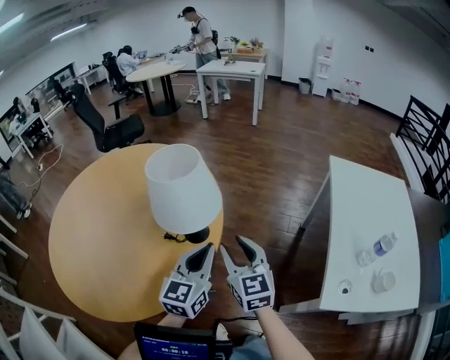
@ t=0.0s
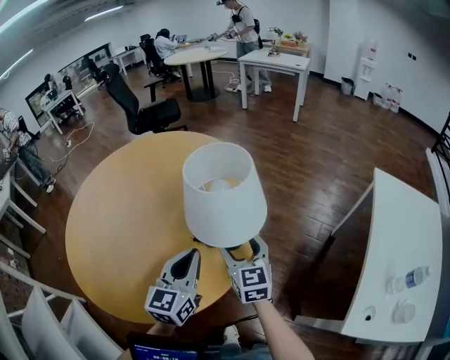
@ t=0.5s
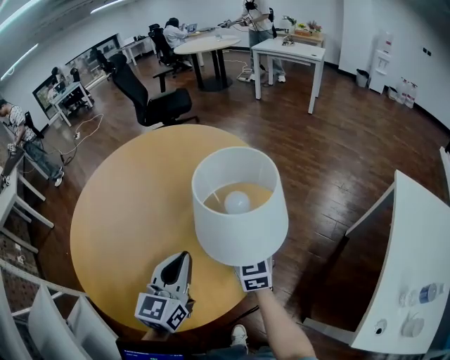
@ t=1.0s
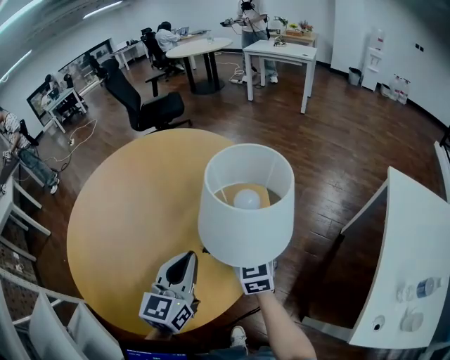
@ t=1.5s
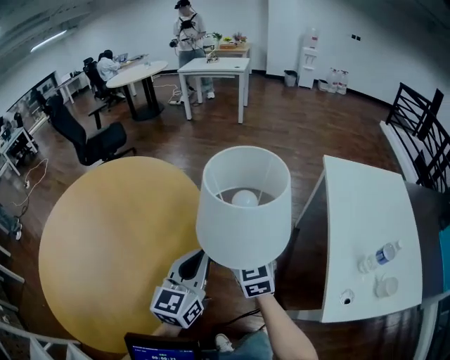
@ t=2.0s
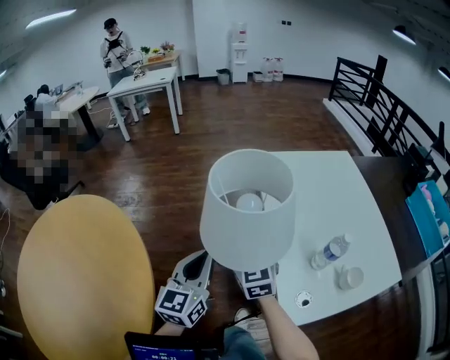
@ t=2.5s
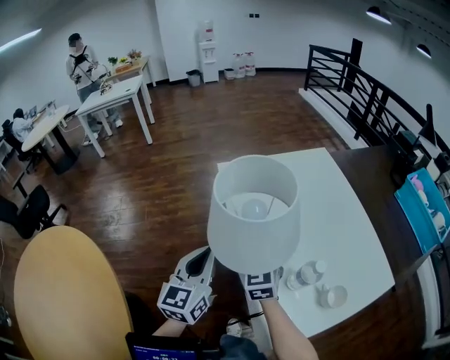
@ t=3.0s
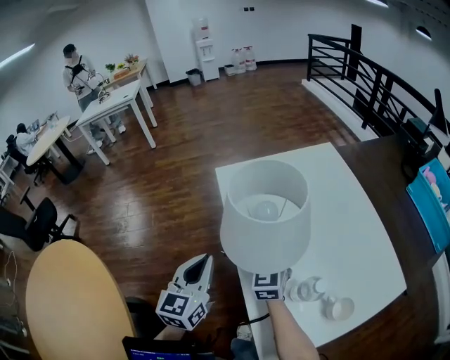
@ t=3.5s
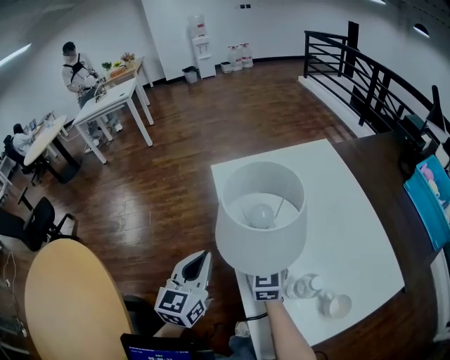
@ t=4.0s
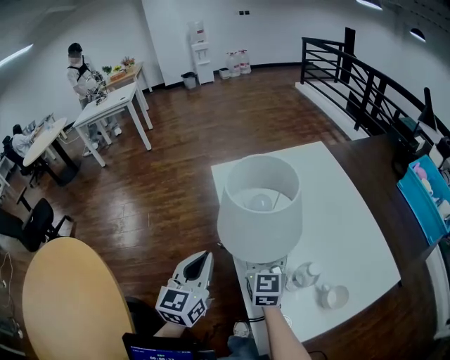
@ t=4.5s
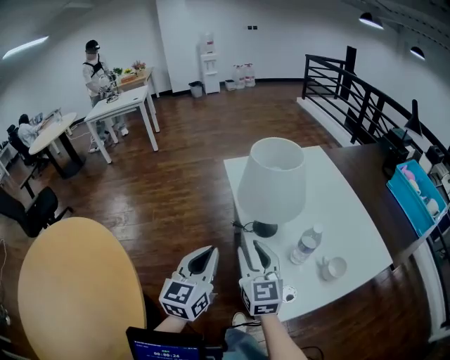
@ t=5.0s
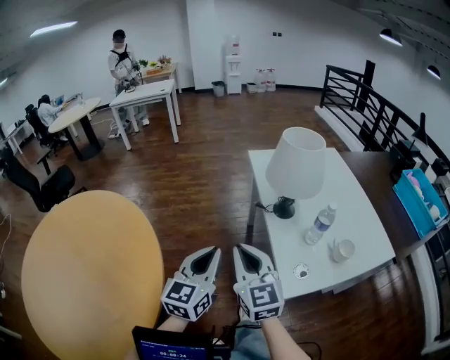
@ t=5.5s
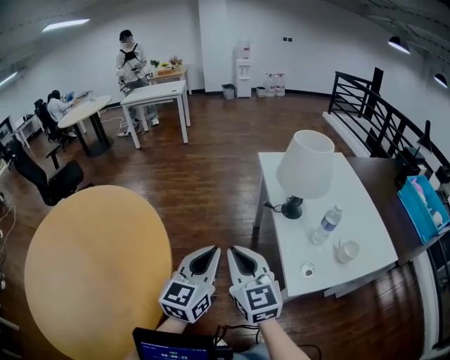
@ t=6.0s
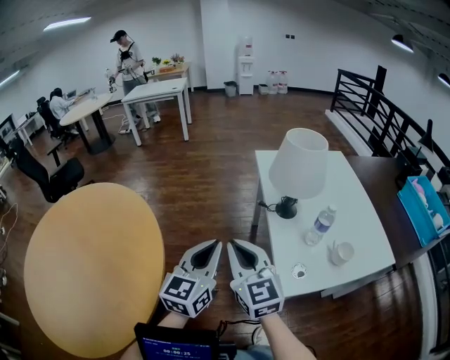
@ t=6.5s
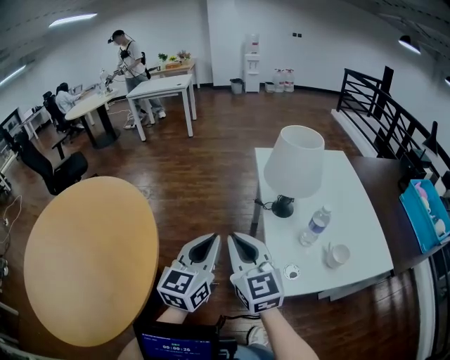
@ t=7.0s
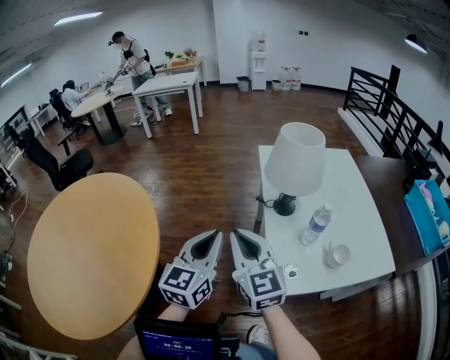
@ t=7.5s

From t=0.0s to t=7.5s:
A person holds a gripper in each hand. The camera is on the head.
From t=0.0s to t=2.0s: The left gripper travels forward by roughly 10 cm, and travels to the left and back again, roughly 20 cm each way, while the right gripper is displaced forward by roughly 10 cm, moves roughly 15 cm to the left and comes back, and opens, then closes once more.
From t=2.0s to t=4.0s: Both grippers are carried some 50 cm. The right gripper turns by approximately 40 degrees, and opens up, while the left gripper swivels approximately 30 degrees.
From t=4.0s to t=5.5s: The left gripper goes some 25 cm backward; the right gripper shifts roughly 35 cm backward and to the left, and closes up.
From t=5.5s to t=7.5s: The right gripper shifts by some 5 cm; the left gripper shifts by approximately 5 cm.

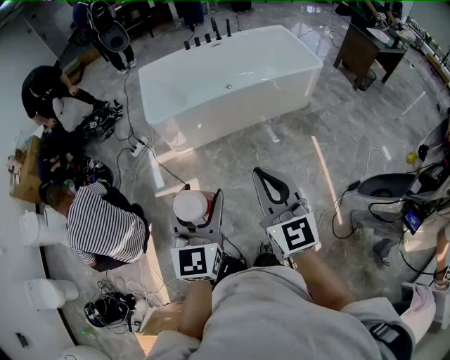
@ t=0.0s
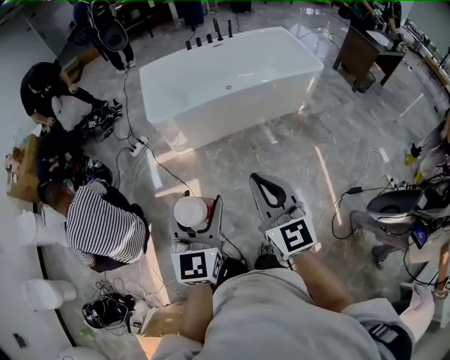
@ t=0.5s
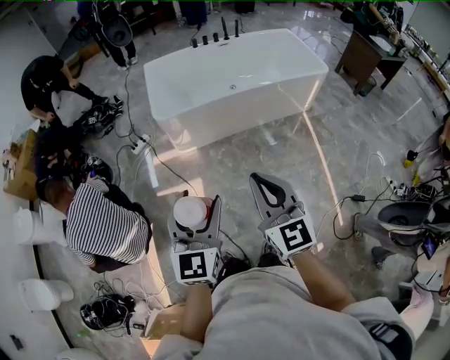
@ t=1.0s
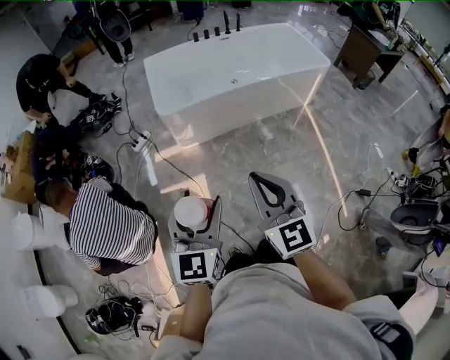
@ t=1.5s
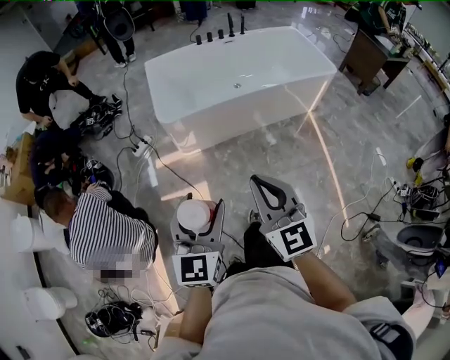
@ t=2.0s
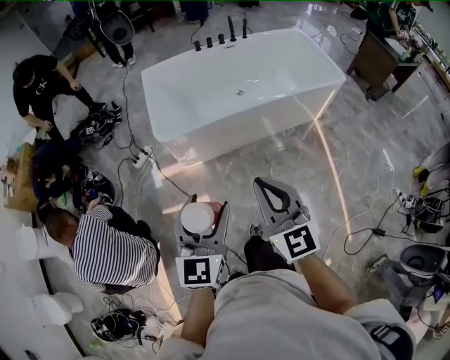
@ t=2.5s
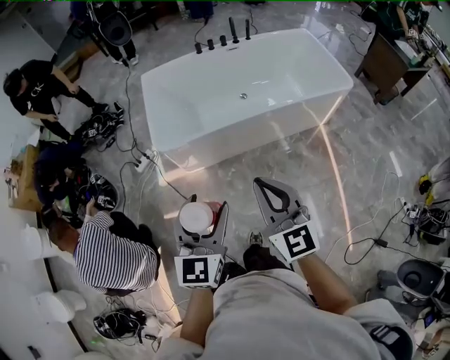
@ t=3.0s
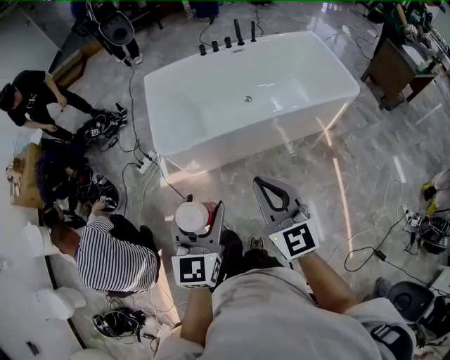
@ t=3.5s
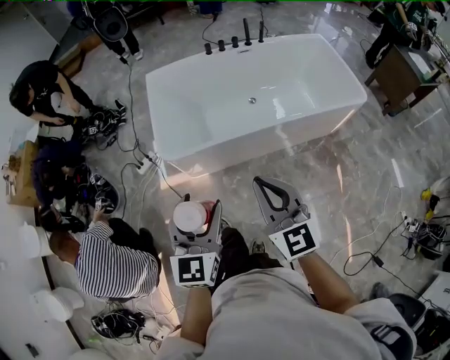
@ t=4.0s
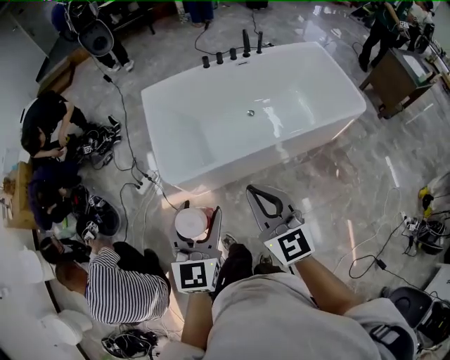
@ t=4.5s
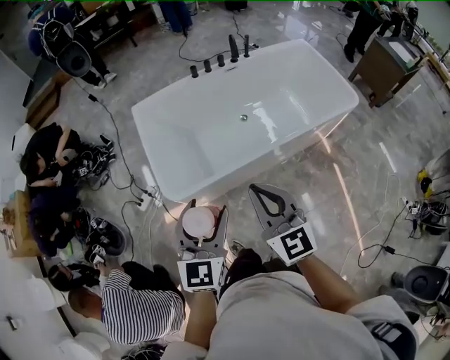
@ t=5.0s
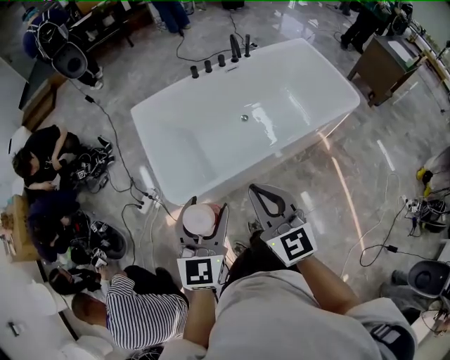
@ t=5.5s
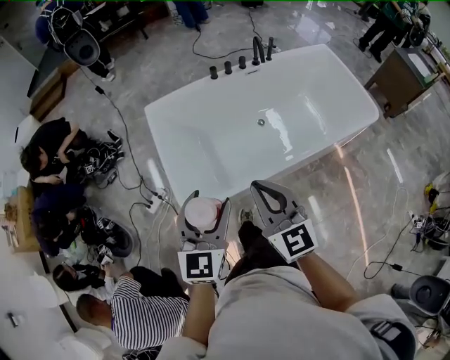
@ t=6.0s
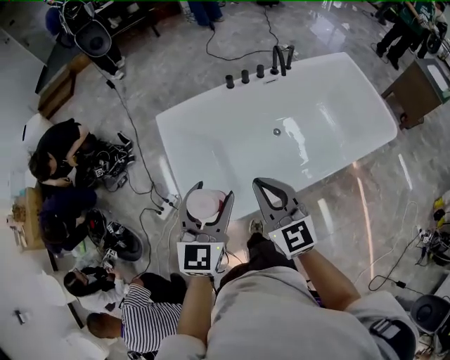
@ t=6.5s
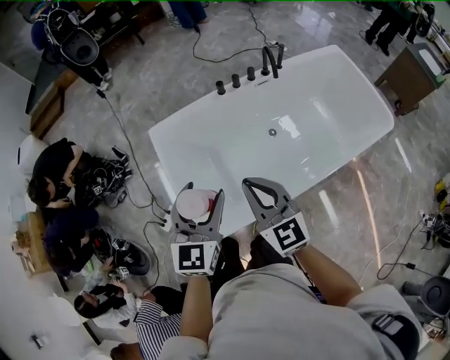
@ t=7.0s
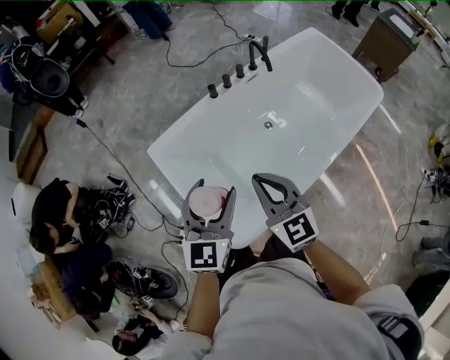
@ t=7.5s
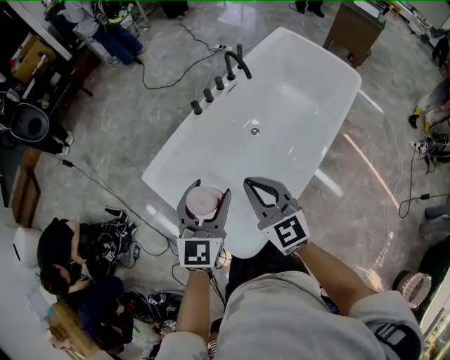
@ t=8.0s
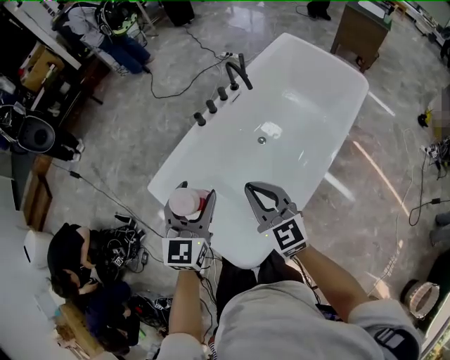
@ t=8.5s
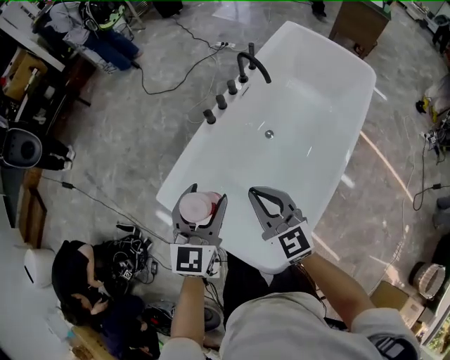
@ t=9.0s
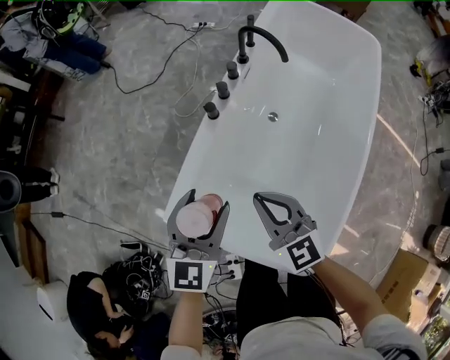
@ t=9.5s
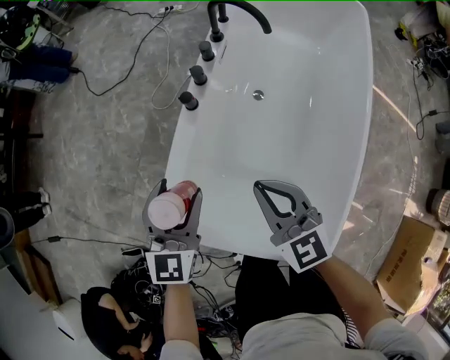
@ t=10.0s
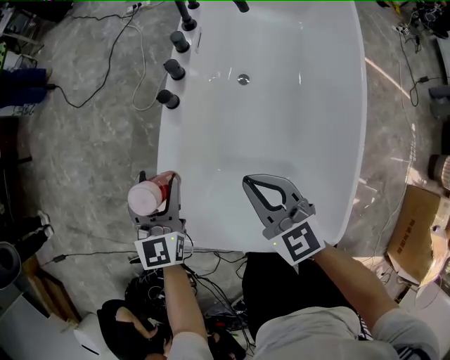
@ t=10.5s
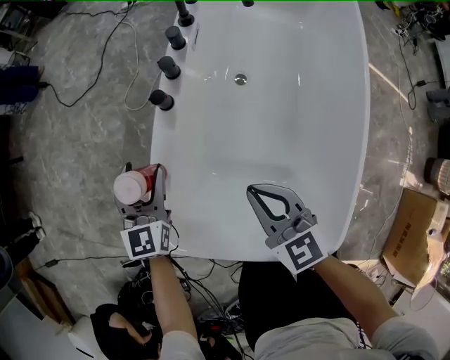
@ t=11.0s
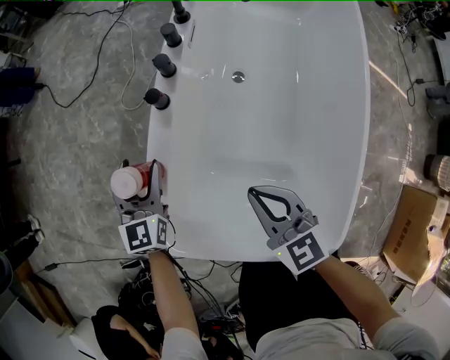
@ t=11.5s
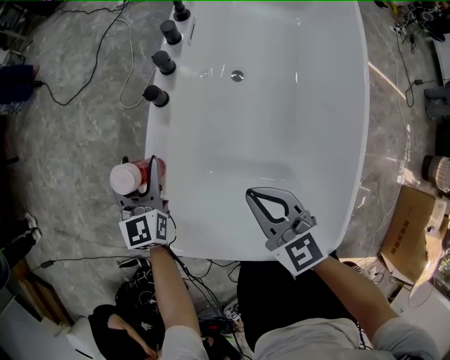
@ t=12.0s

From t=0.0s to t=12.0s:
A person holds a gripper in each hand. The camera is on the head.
From t=0.0s to t=2.0s: The two grippers go roughly 15 cm to the left and forward.
From t=2.0s to t=4.0s: The two grippers go about 35 cm forward.
From t=4.0s to t=6.0s: The right gripper goes about 30 cm forward and to the left; the left gripper shifts about 30 cm forward.
From t=6.0s to t=8.0s: The right gripper ends up roughly 30 cm from where it was, and rotates roughly 30 degrees, while the left gripper ends up about 35 cm from where it was, and rotates approximately 30 degrees.
From t=8.0s to t=10.0s: The left gripper moves forward, downward and to the left, roughly 40 cm, and changes its angle by roughly 20 degrees. Meanwhile the right gripper is displaced downward, forward and to the left by some 35 cm, and rotates some 20 degrees.
From t=10.0s to t=12.0s: The right gripper heads downward, covering about 10 cm; the left gripper moves downward and forward, about 20 cm.

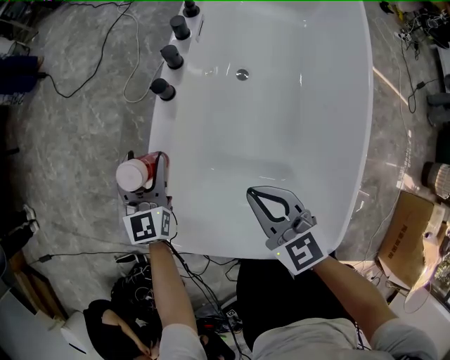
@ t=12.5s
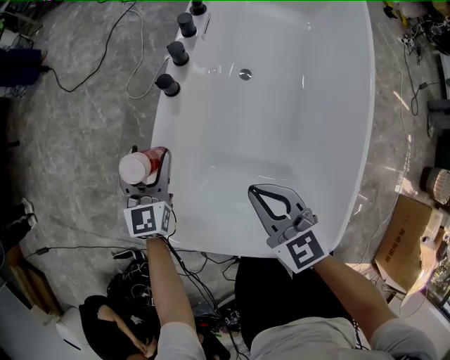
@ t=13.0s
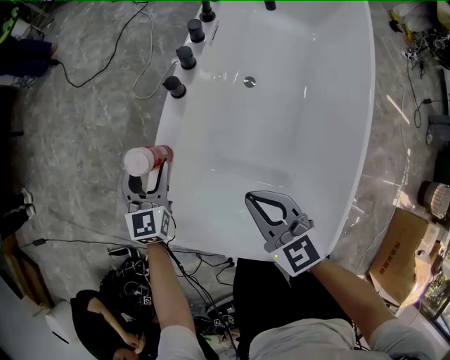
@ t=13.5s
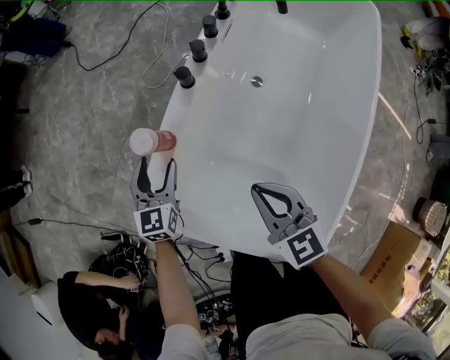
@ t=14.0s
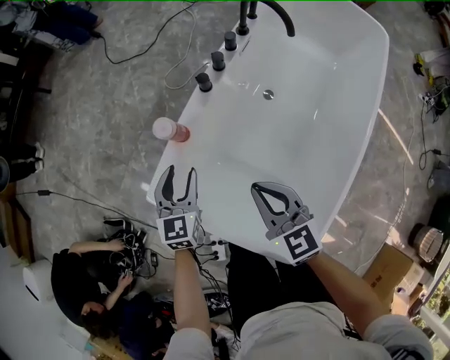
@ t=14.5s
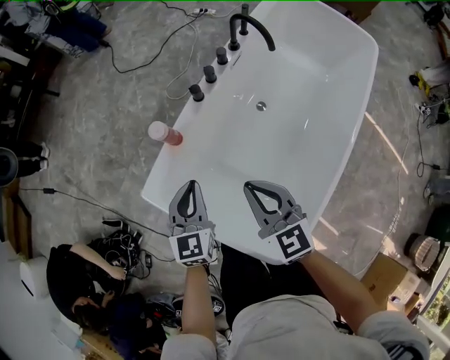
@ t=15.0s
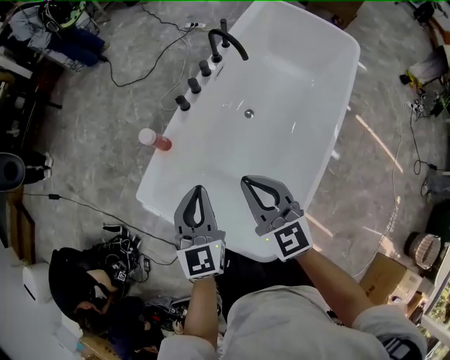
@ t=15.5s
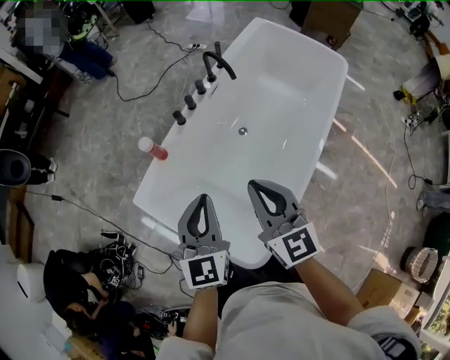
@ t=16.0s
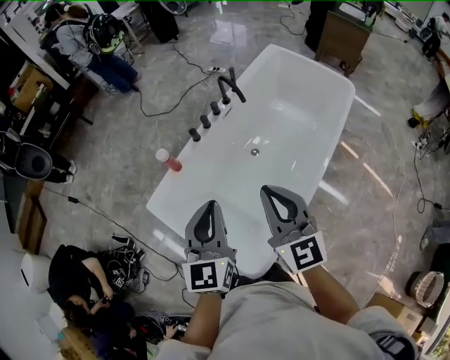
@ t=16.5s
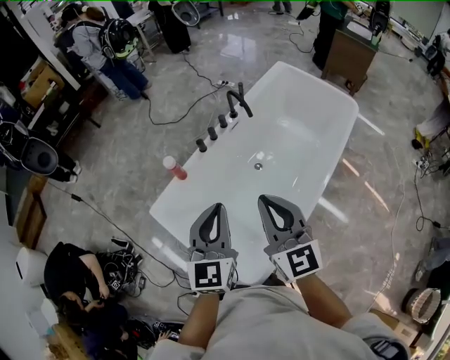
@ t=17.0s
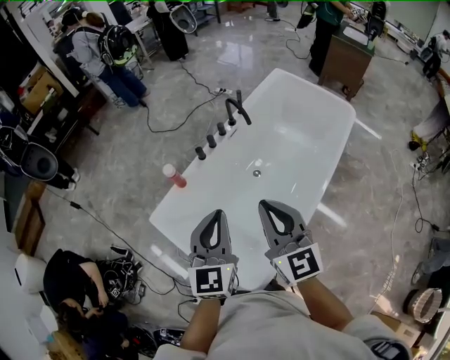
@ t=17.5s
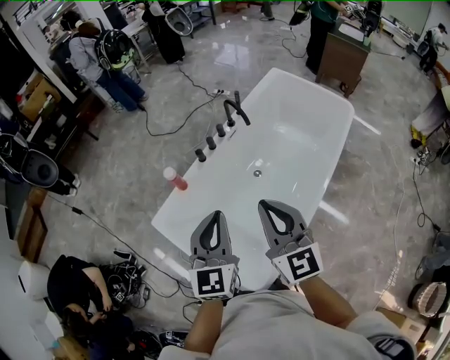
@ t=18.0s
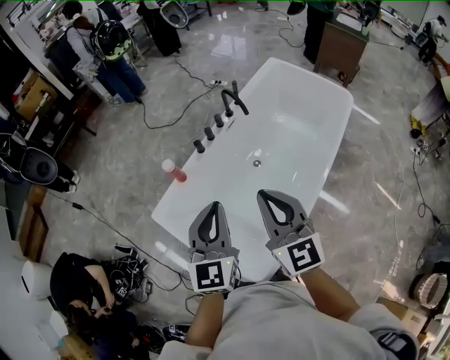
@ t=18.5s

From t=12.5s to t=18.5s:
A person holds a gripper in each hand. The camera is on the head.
From t=12.5s to t=14.5s: The left gripper moves backward and upward, about 15 cm. Meanwhile the right gripper is displaced upward by about 10 cm.
From t=14.5s to t=16.5s: The left gripper shifts roughly 50 cm upward, to the right and backward, rotates some 20 degrees, and closes, while the right gripper travels upward and to the right by about 35 cm, and swivels some 30 degrees.
From t=16.5s to t=18.5s: The grippers move only a little.

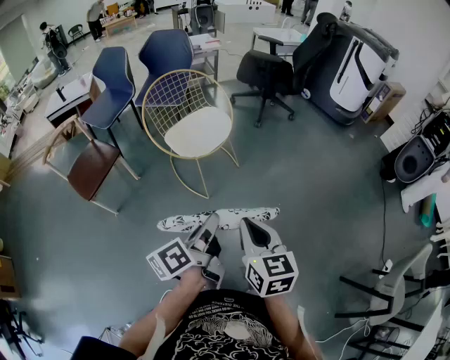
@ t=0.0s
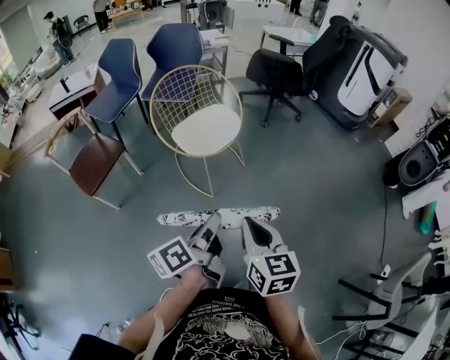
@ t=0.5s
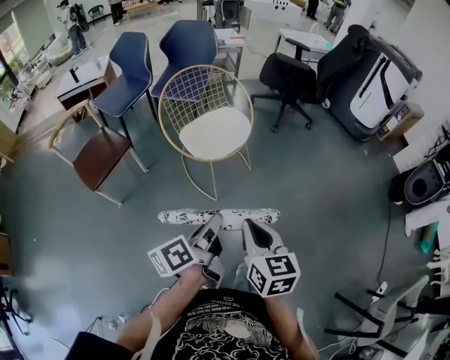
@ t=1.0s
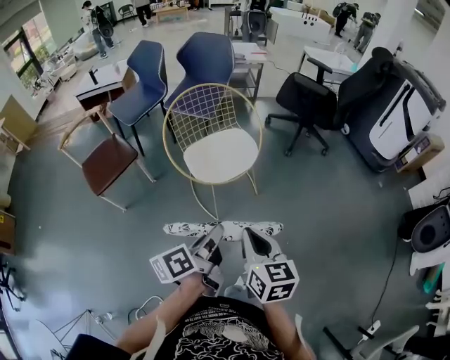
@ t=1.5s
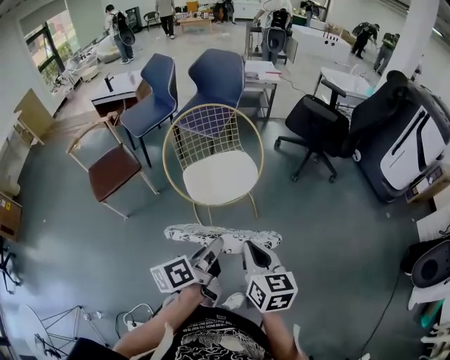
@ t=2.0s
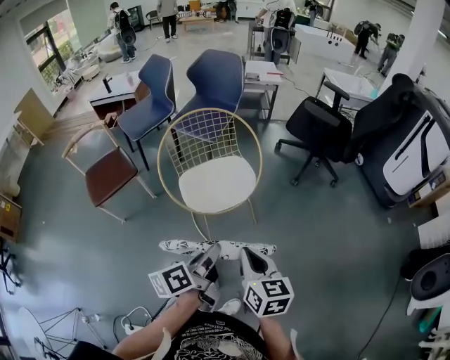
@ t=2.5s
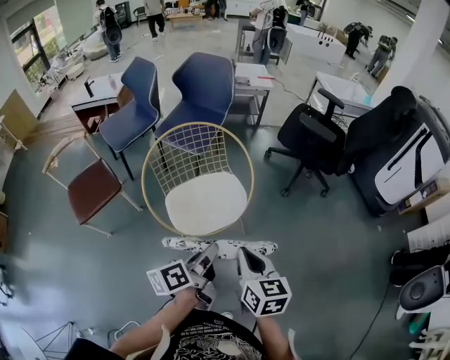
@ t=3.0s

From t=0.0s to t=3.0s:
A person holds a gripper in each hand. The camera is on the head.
From t=0.0s to t=1.5s: The grippers both shift forward by some 15 cm.
From t=1.5s to t=3.0s: The grippers both shift forward by some 20 cm.
